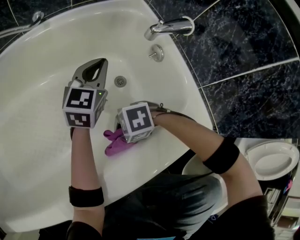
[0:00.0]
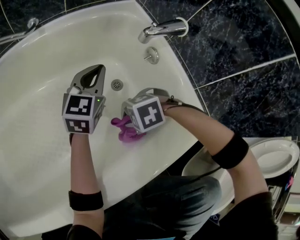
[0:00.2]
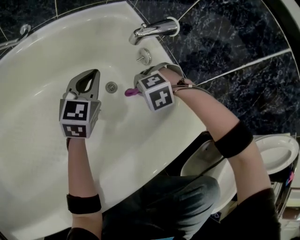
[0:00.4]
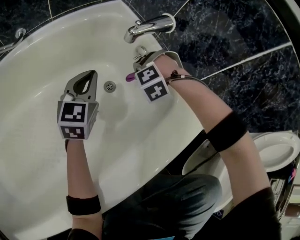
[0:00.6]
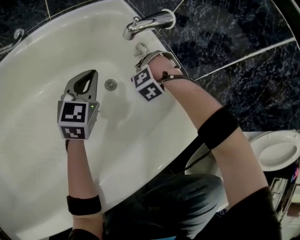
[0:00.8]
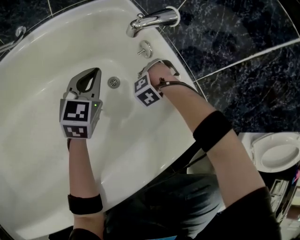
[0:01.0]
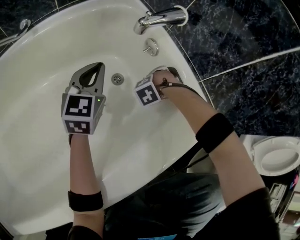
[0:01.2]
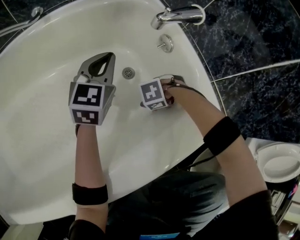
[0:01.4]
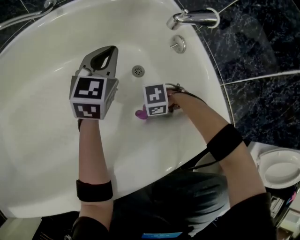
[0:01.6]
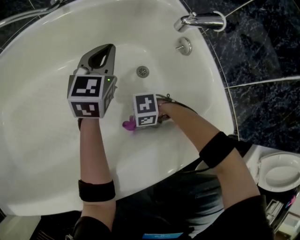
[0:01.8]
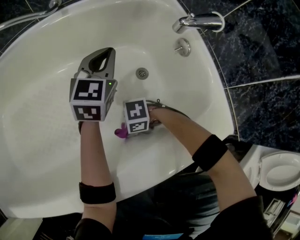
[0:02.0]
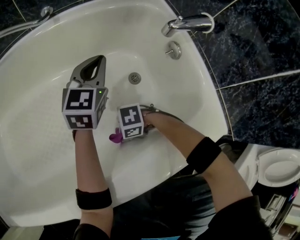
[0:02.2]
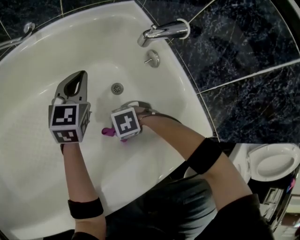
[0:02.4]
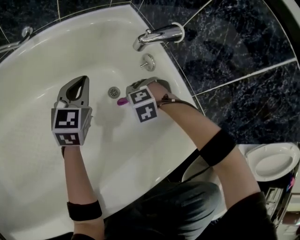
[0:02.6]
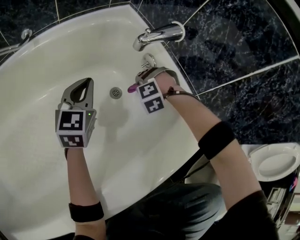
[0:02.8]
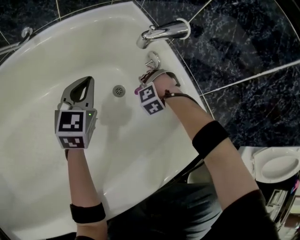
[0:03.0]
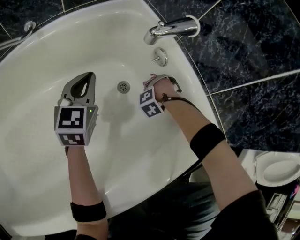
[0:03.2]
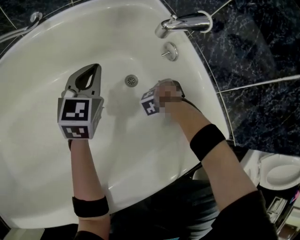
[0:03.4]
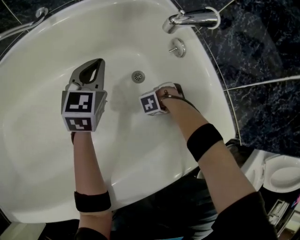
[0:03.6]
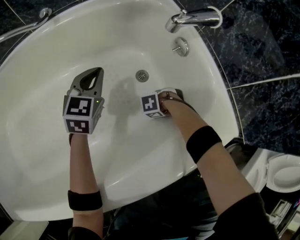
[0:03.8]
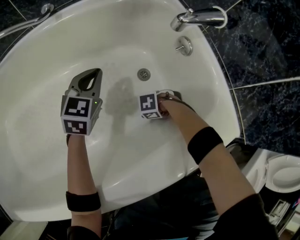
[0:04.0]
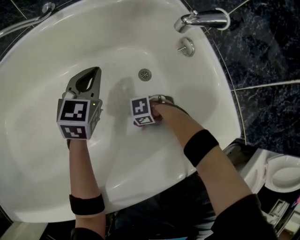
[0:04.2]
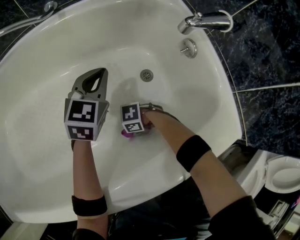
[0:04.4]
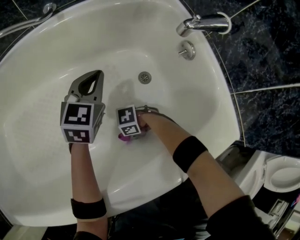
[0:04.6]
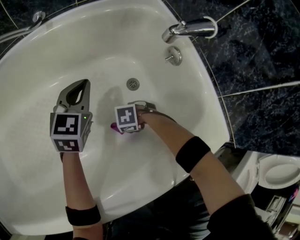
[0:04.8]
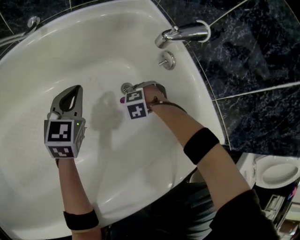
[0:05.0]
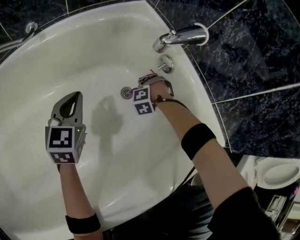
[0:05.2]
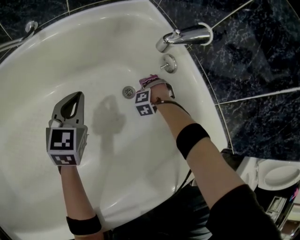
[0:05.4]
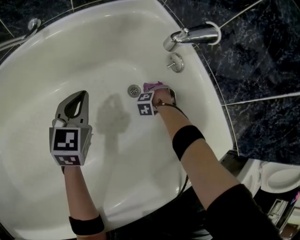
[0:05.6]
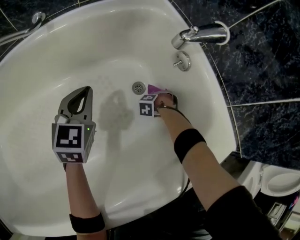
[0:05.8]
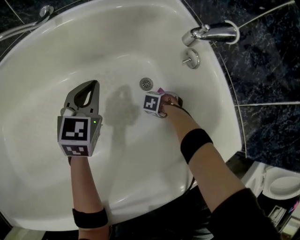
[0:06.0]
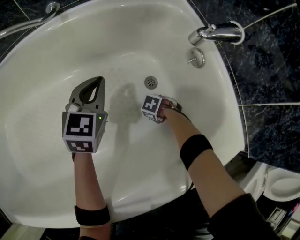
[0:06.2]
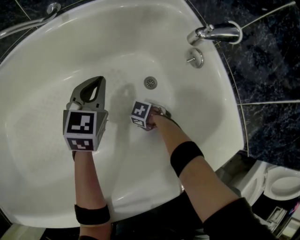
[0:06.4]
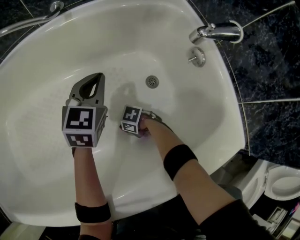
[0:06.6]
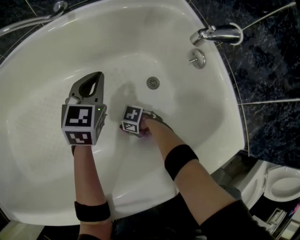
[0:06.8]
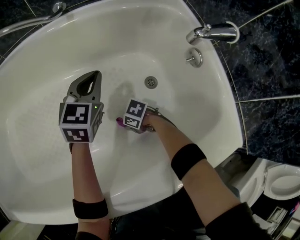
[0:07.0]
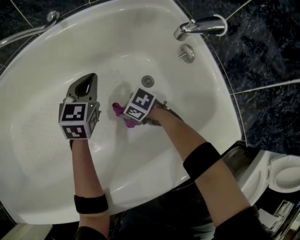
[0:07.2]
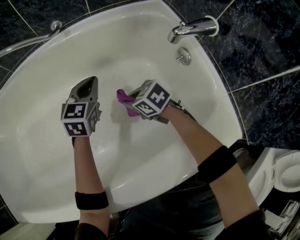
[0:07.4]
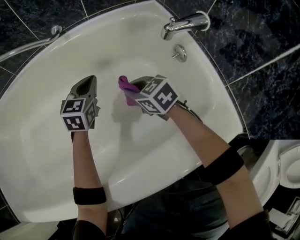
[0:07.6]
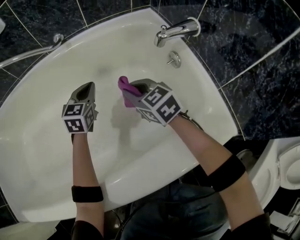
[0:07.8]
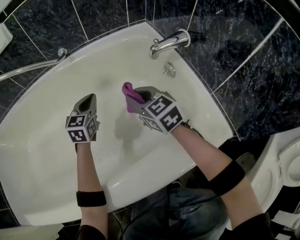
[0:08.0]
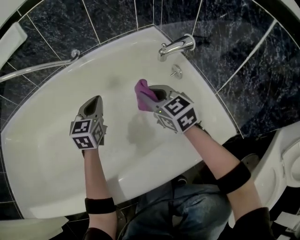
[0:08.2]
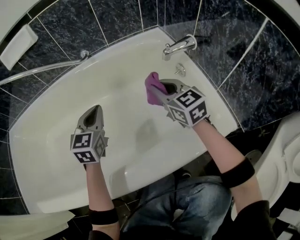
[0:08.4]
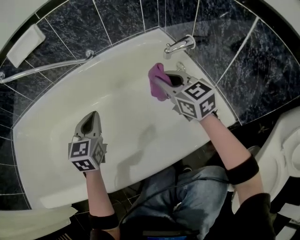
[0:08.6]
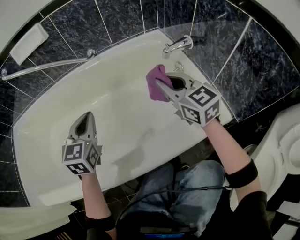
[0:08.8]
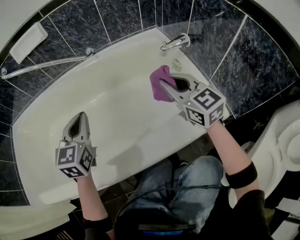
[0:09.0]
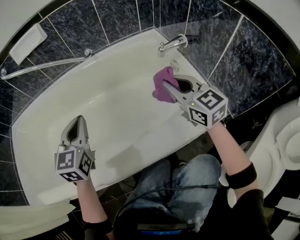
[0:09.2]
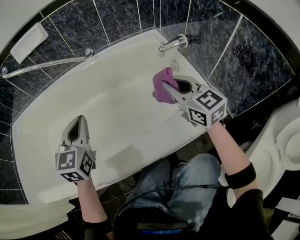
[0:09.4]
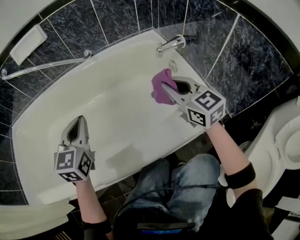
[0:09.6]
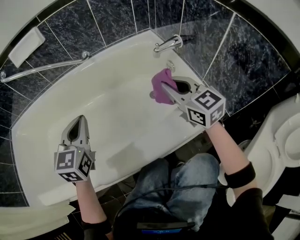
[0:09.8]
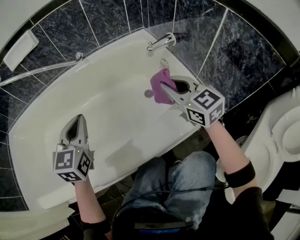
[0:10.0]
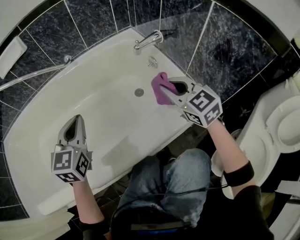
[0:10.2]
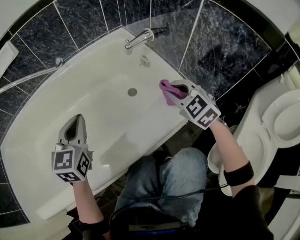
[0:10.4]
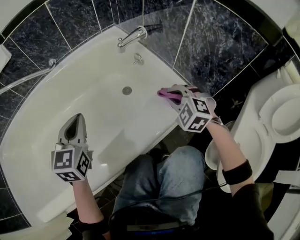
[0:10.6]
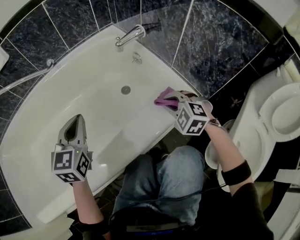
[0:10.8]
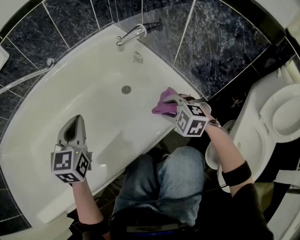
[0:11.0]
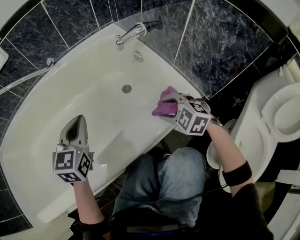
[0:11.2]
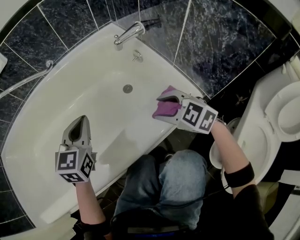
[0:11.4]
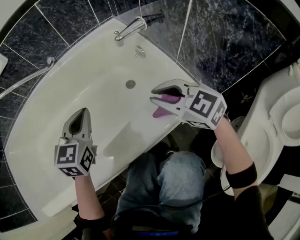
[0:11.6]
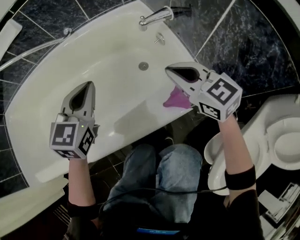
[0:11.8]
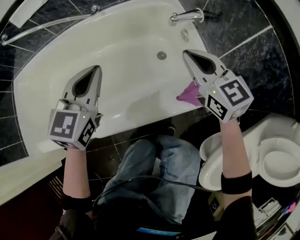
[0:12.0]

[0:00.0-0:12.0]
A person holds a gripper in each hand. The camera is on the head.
0:00.0 to 0:01.6: The right gripper swivels approximately 20 degrees.
0:01.6 to 0:03.0: The right gripper moves approximately 25 cm, and rotates roughly 60 degrees.
0:03.0 to 0:04.4: The right gripper shifts by about 35 cm, and turns by approximately 70 degrees. The left gripper ends up approximately 5 cm from where it was.
0:04.4 to 0:06.0: The right gripper shifts by about 25 cm, and changes its angle by approximately 40 degrees.
0:06.0 to 0:07.6: The right gripper is displaced upward by roughly 25 cm, and points its fingers some 40 degrees further upward.
0:07.6 to 0:09.0: The right gripper is displaced upward and backward by some 30 cm, and rotates approximately 30 degrees; the left gripper travels upward, backward and to the left by some 35 cm.
0:09.0 to 0:10.4: The right gripper is displaced to the right, backward and downward by about 15 cm, and rotates about 30 degrees; the left gripper travels to the right by about 10 cm.
0:10.4 to 0:12.0: The left gripper is displaced upward by about 10 cm. Meanwhile the right gripper goes about 15 cm upward and forward, turns by approximately 30 degrees, and opens, then closes once more.

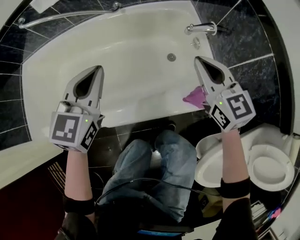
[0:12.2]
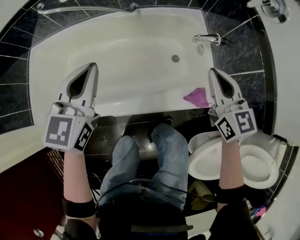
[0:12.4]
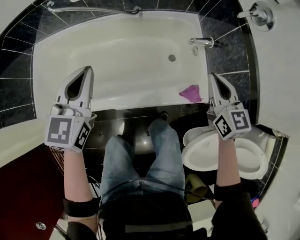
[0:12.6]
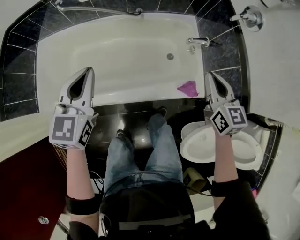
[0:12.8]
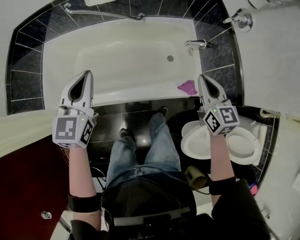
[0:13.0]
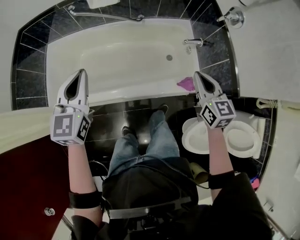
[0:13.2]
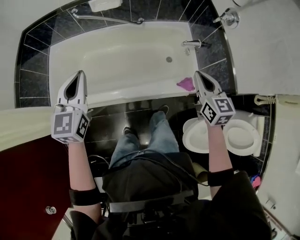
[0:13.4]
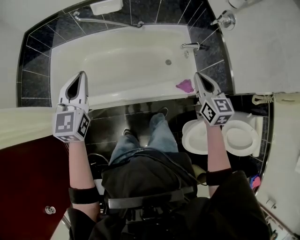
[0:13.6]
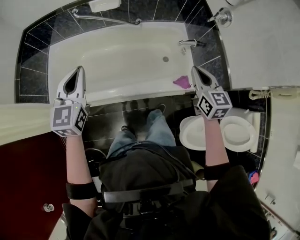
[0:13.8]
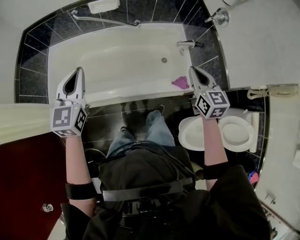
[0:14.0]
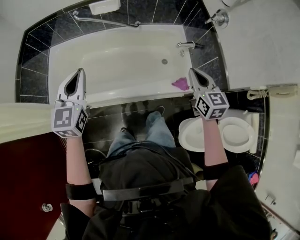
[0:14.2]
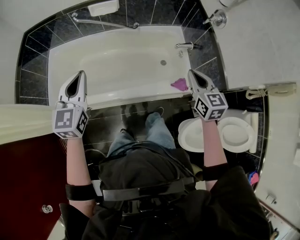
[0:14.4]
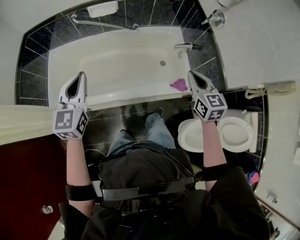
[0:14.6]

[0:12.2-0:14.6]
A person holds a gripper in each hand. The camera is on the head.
0:12.2 to 0:13.4: The left gripper shifts roughly 40 cm upward, to the left and backward. The right gripper shifts roughly 35 cm upward and backward.
0:13.4 to 0:14.6: The grippers stay close to where they were, moving slightly.

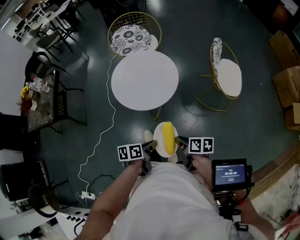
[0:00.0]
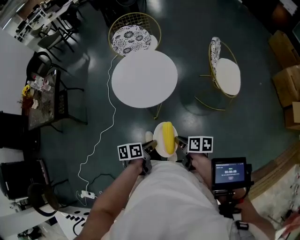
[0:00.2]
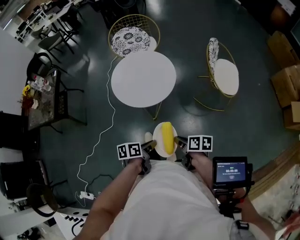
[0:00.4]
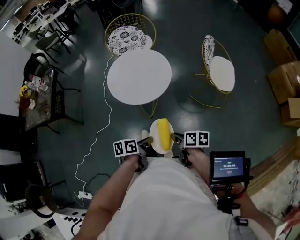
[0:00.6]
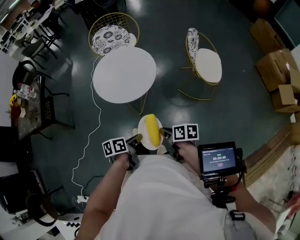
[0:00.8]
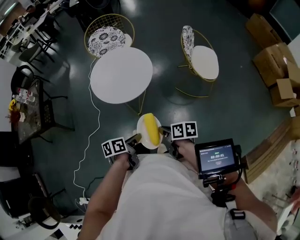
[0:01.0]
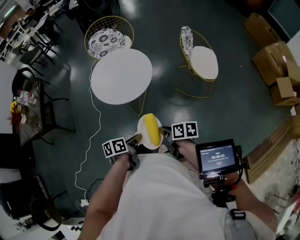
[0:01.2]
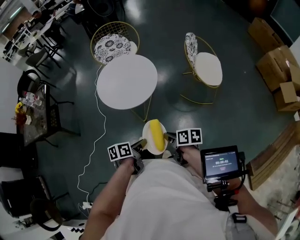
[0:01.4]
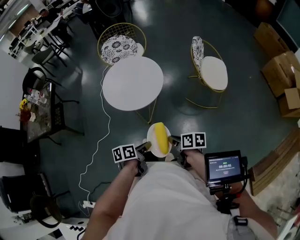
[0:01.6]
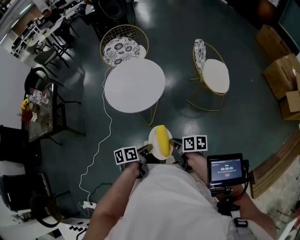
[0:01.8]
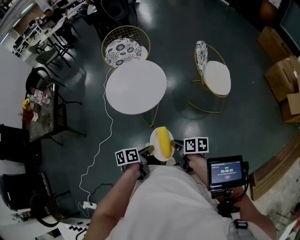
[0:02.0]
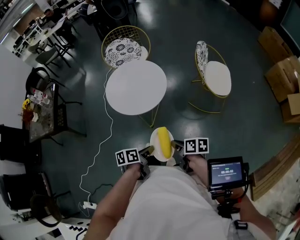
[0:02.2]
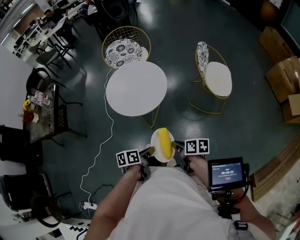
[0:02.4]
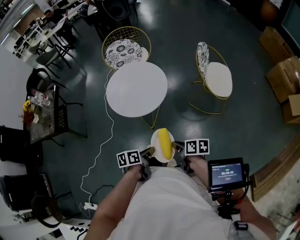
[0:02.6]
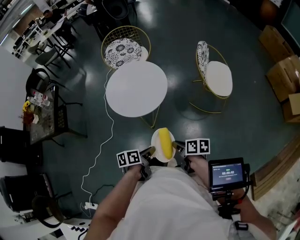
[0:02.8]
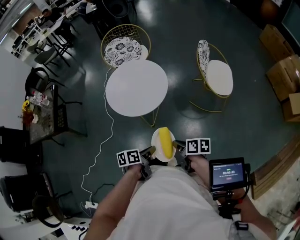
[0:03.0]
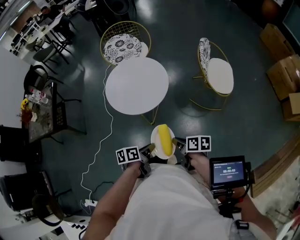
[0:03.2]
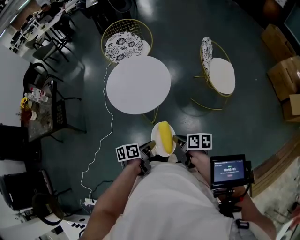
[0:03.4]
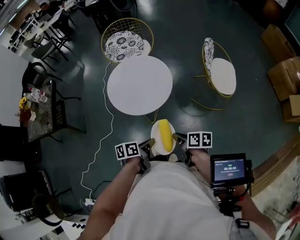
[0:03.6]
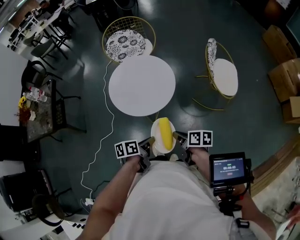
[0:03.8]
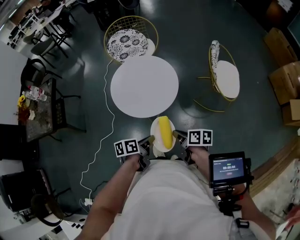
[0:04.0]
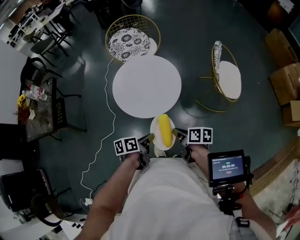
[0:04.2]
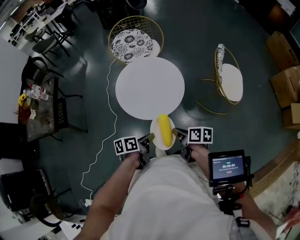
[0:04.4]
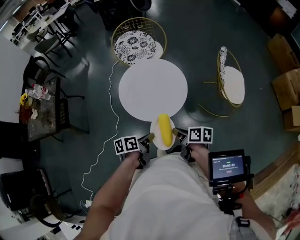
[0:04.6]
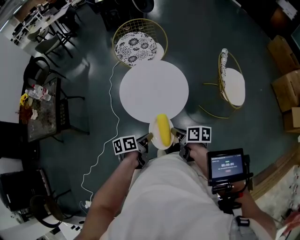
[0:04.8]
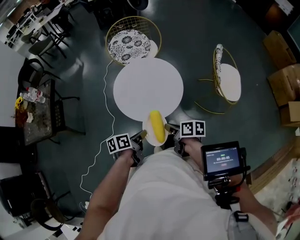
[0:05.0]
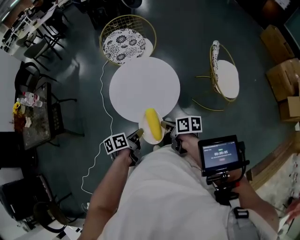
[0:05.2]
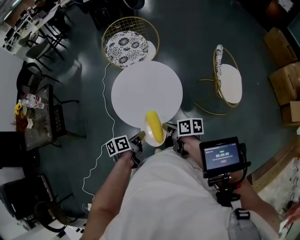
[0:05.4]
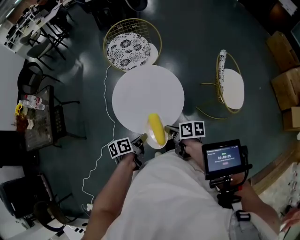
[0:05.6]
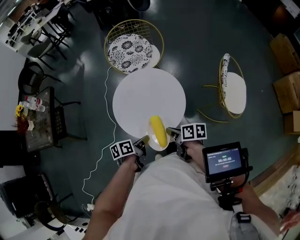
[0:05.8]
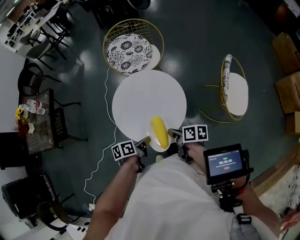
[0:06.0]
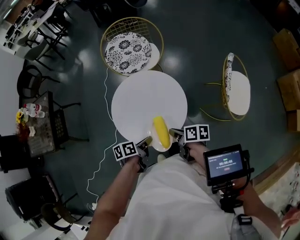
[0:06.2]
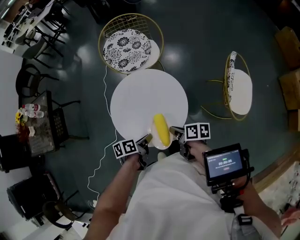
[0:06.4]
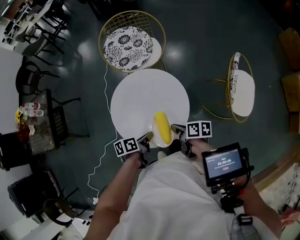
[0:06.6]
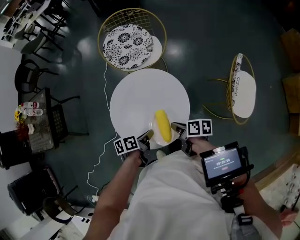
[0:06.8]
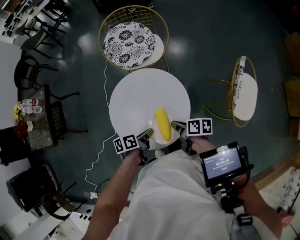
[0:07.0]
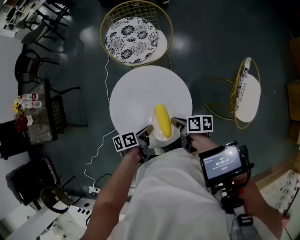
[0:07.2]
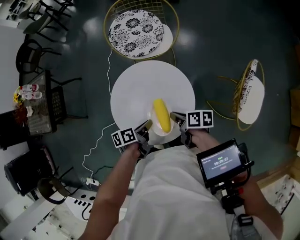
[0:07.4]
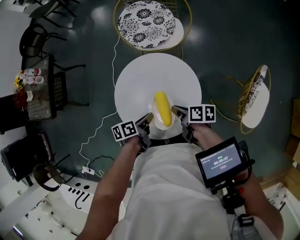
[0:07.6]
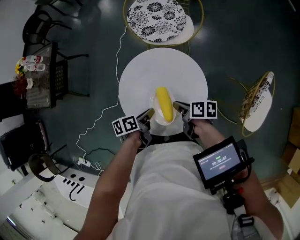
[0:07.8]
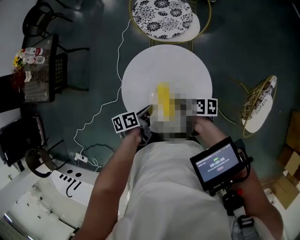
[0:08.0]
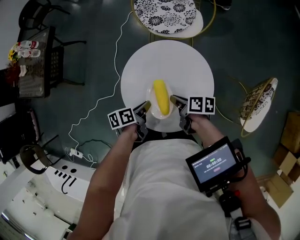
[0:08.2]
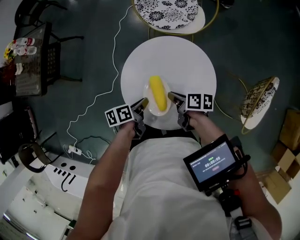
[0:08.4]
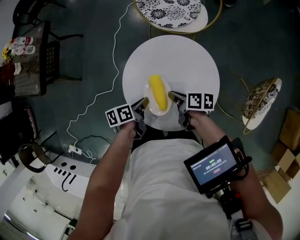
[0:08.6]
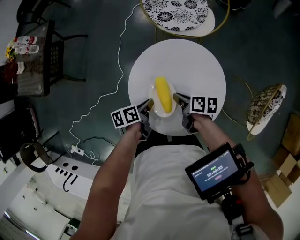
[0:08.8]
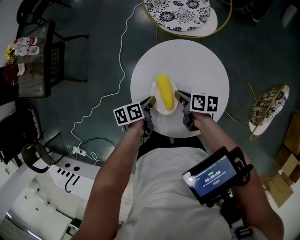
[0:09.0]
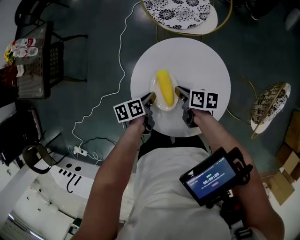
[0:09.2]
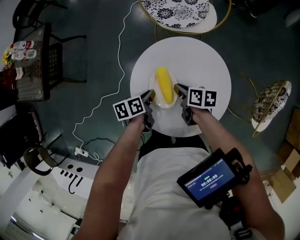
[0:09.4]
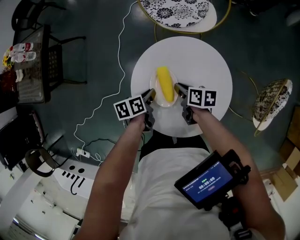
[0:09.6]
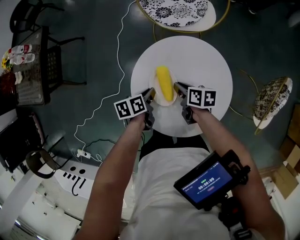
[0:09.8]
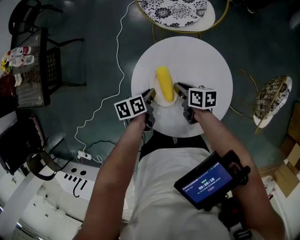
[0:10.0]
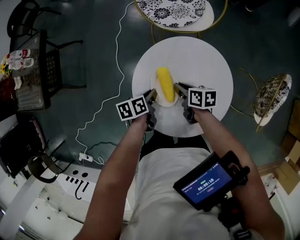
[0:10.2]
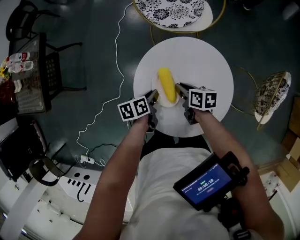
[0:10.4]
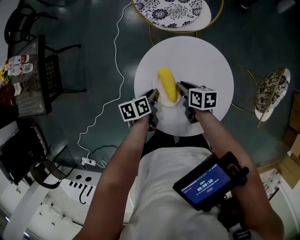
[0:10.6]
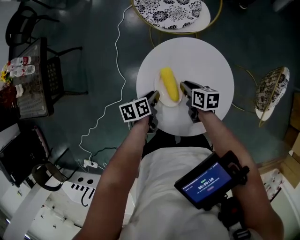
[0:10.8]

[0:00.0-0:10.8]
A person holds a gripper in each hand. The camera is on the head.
0:00.0 to 0:01.6: The right gripper ends up about 5 cm from where it was.
0:03.0 to 0:04.6: The right gripper moves approximately 20 cm.
0:04.6 to 0:06.2: The right gripper changes place by some 15 cm.
0:06.2 to 0:07.8: The right gripper moves approximately 15 cm.
0:07.8 to 0:09.2: The right gripper moves some 15 cm.
